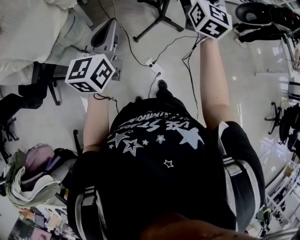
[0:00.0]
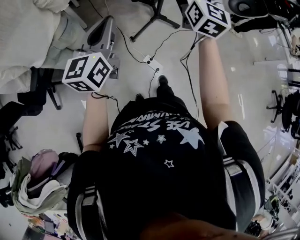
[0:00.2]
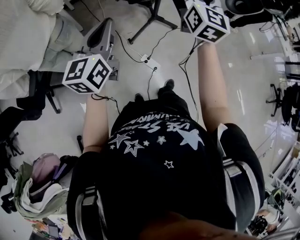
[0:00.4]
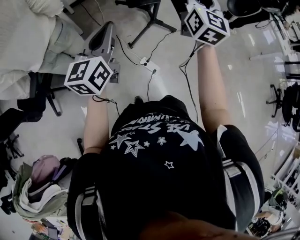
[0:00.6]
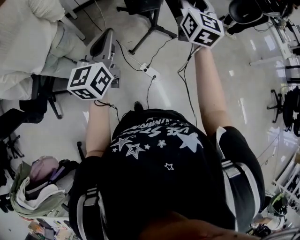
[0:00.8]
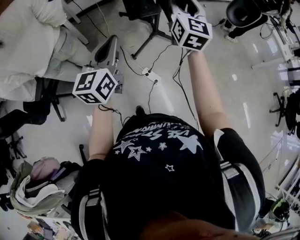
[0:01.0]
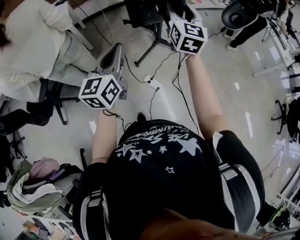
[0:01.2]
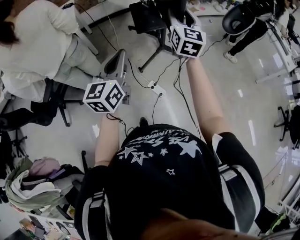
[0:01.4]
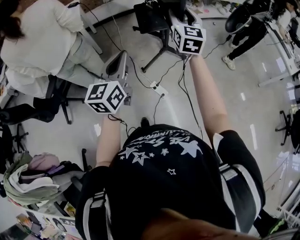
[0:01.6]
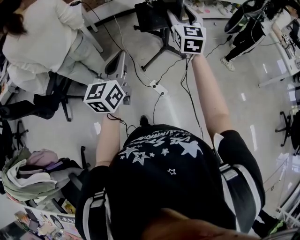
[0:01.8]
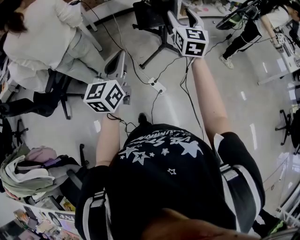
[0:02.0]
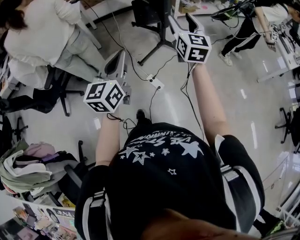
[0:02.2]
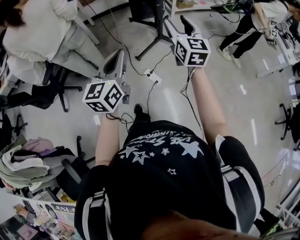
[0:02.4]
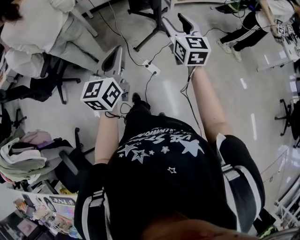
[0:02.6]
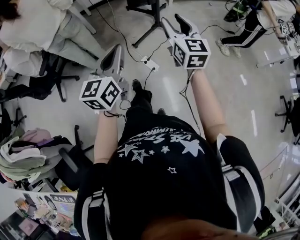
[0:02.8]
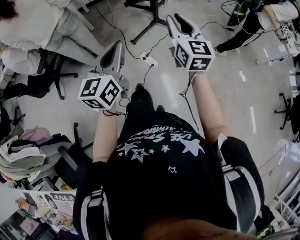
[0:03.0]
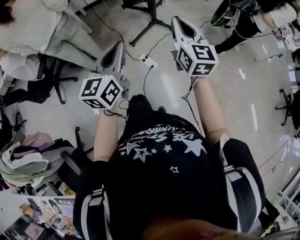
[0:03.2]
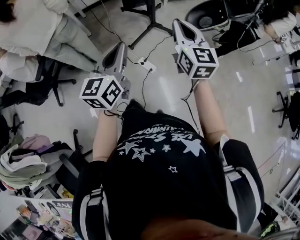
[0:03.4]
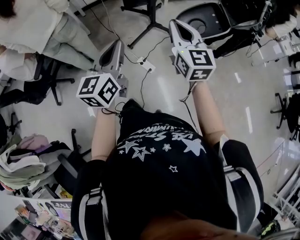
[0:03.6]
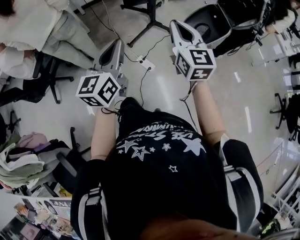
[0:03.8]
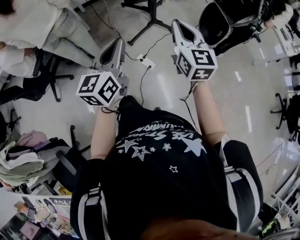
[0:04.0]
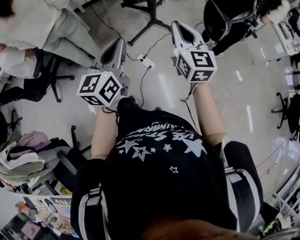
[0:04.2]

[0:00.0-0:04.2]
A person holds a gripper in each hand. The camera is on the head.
0:00.0 to 0:01.4: The left gripper shifts approximately 15 cm to the right and backward. The right gripper moves backward and to the right, about 10 cm.
0:01.4 to 0:02.8: The right gripper travels backward by some 20 cm, while the left gripper heads backward and to the right, covering about 20 cm.
0:02.8 to 0:04.2: The right gripper closes up.

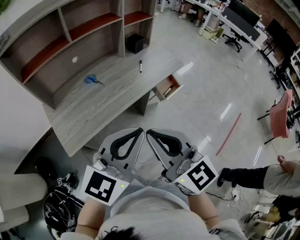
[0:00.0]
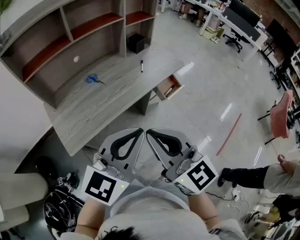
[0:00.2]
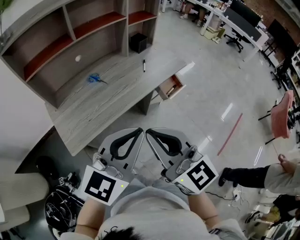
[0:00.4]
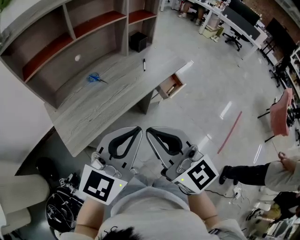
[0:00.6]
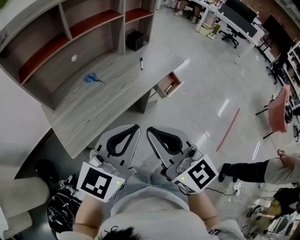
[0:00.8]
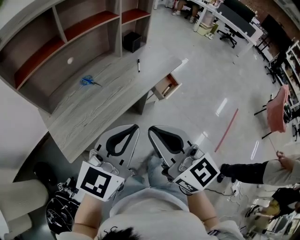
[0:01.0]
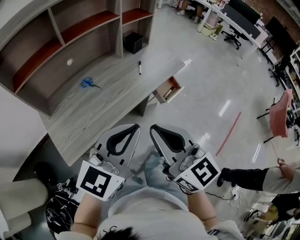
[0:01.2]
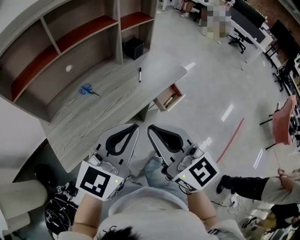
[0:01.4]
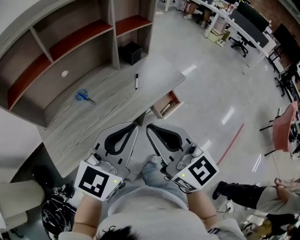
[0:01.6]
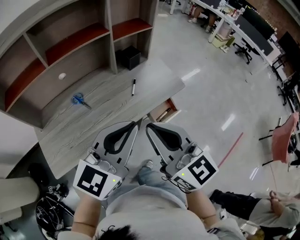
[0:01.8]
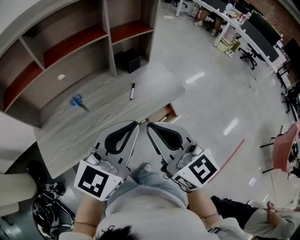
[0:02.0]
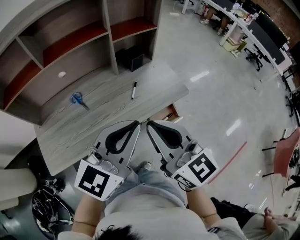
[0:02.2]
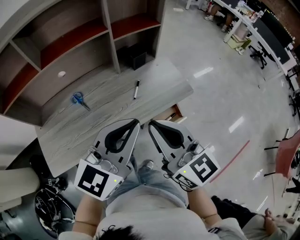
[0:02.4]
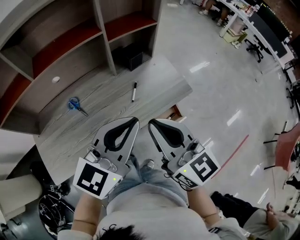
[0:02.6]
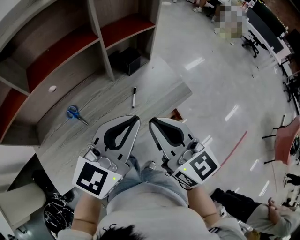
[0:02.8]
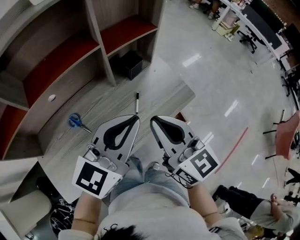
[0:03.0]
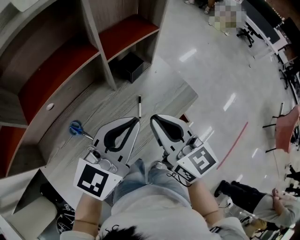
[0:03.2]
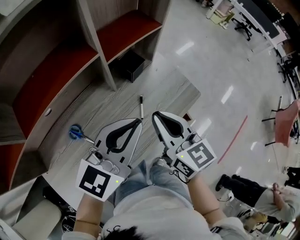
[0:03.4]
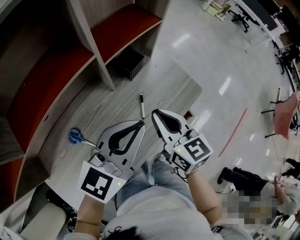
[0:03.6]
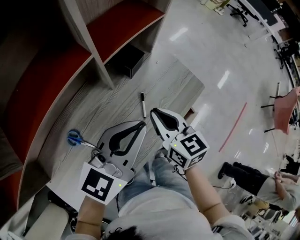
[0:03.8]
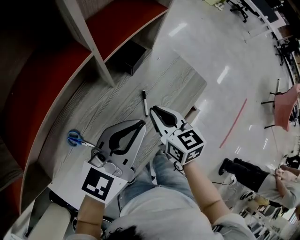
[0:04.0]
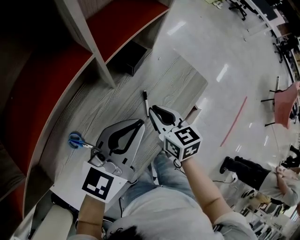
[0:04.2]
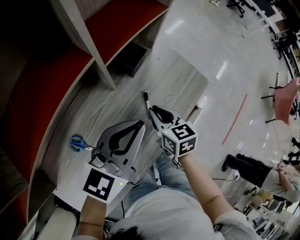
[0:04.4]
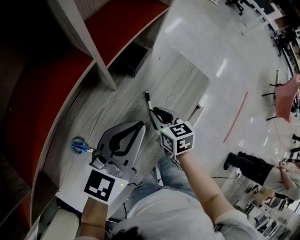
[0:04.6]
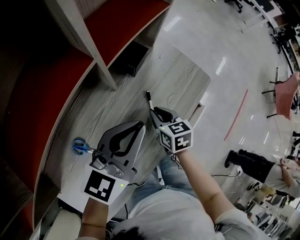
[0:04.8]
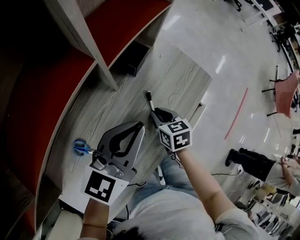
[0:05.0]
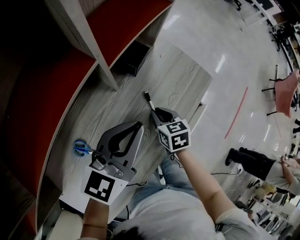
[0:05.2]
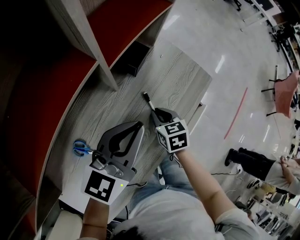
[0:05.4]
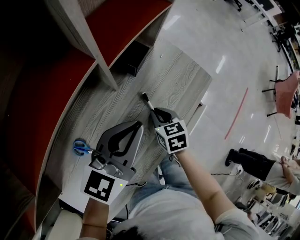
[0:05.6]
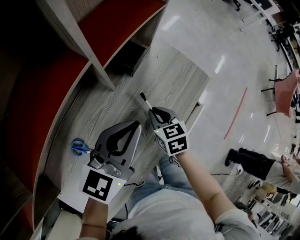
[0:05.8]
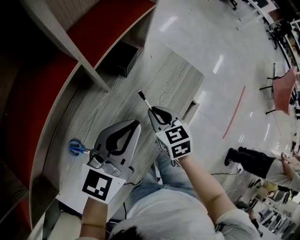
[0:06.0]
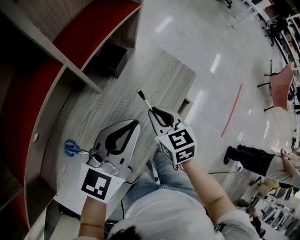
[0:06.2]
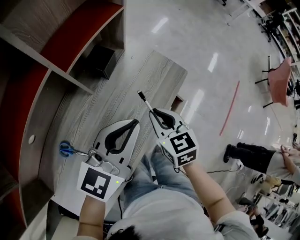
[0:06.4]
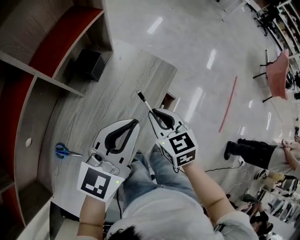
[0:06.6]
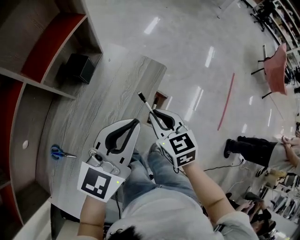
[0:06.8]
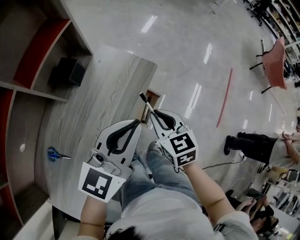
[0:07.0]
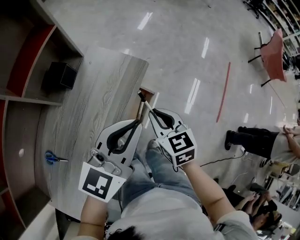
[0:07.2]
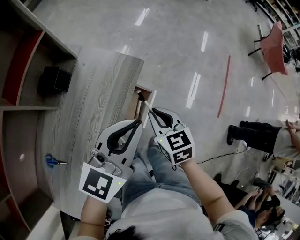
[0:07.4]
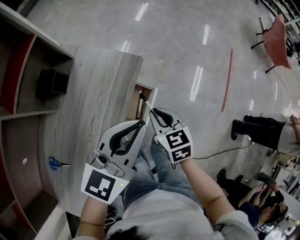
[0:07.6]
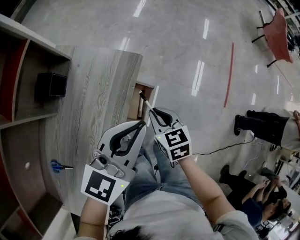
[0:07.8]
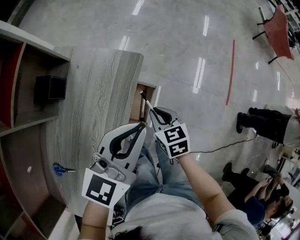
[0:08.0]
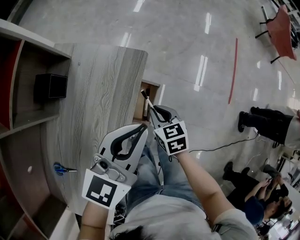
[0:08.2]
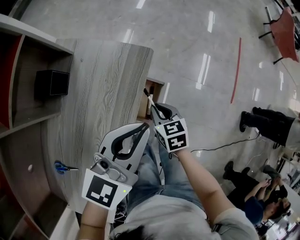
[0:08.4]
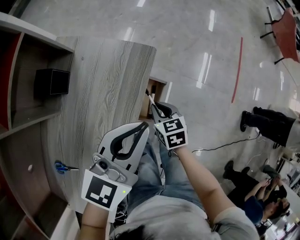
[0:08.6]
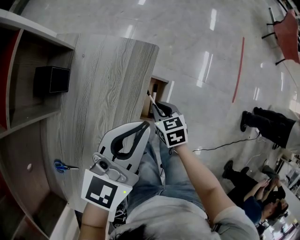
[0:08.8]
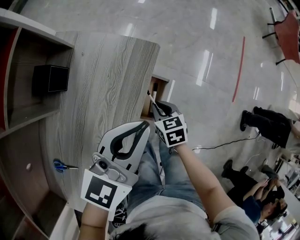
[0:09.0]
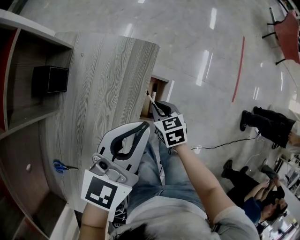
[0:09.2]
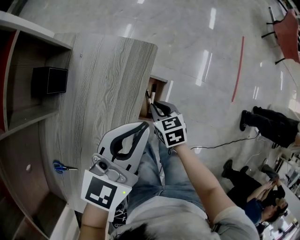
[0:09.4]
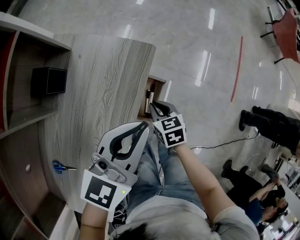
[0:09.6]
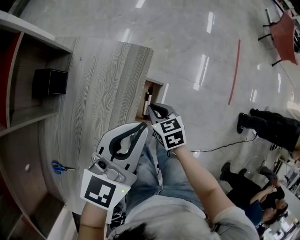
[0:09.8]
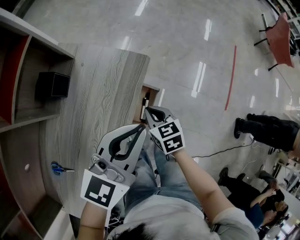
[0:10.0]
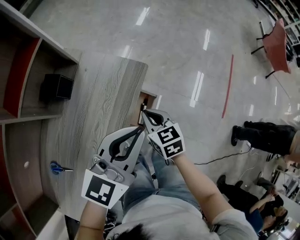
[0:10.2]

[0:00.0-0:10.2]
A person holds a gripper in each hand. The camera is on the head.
0:00.0 to 0:01.4: The two grippers go roughly 10 cm forward.
0:01.4 to 0:03.0: The two grippers go some 25 cm forward.
0:03.0 to 0:04.4: The right gripper is displaced downward and forward by some 25 cm, and tips its fingers downward by roughly 30 degrees; the left gripper heads downward, forward and to the left, covering roughly 15 cm.
0:05.8 to 0:07.2: Both grippers move to the right, some 25 cm.
0:07.2 to 0:08.8: The right gripper moves downward, some 20 cm, and rotates roughly 20 degrees. Meanwhile the left gripper heads downward, covering roughly 5 cm.
0:08.8 to 0:10.2: The left gripper moves about 5 cm. Meanwhile the right gripper is displaced upward by roughly 10 cm.

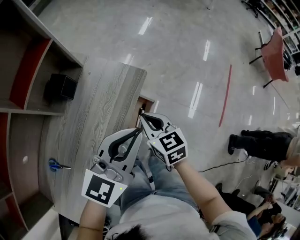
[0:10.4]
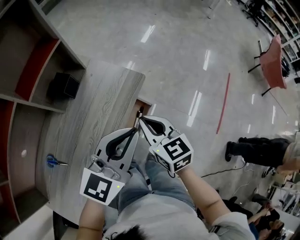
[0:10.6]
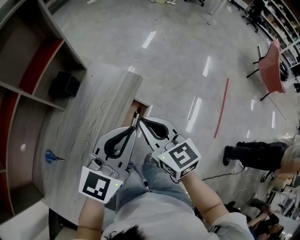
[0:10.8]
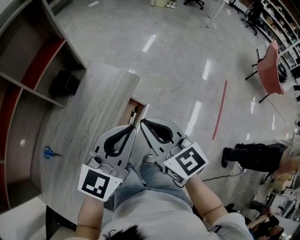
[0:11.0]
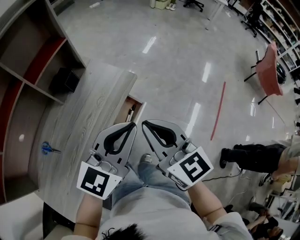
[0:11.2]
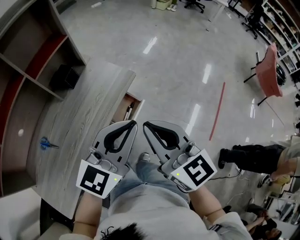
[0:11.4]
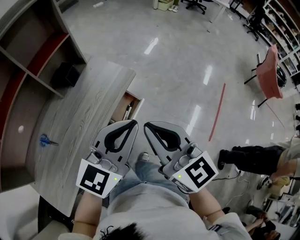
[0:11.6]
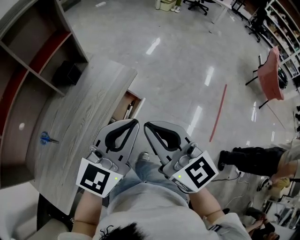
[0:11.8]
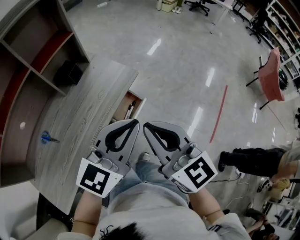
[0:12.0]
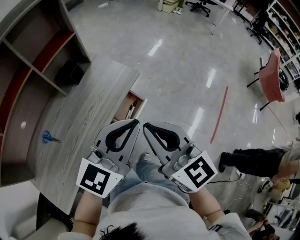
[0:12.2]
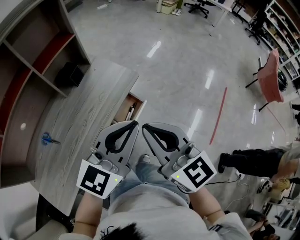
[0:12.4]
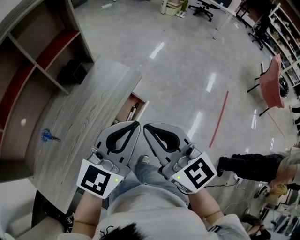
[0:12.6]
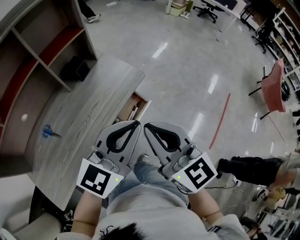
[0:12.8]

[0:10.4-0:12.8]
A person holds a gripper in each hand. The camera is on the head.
0:10.4 to 0:11.6: The left gripper travels backward, upward and to the right by some 15 cm. Meanwhile the right gripper goes about 25 cm upward and backward, and turns by about 30 degrees.
0:11.6 to 0:12.8: The grippers make only small movements.

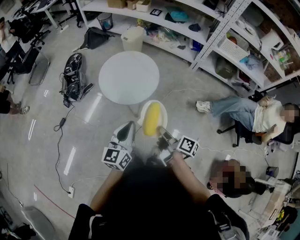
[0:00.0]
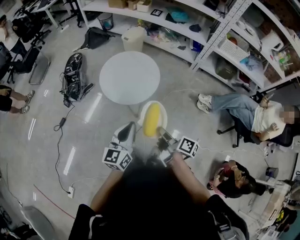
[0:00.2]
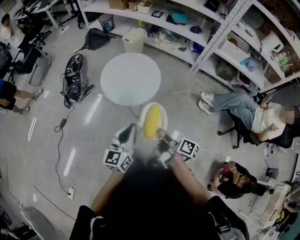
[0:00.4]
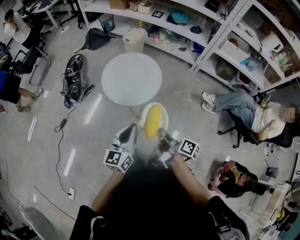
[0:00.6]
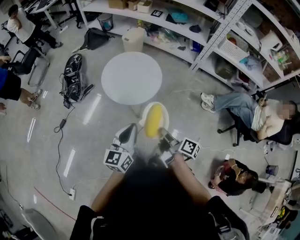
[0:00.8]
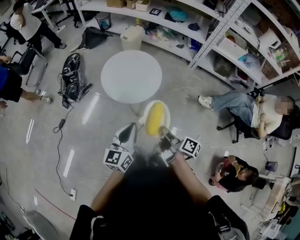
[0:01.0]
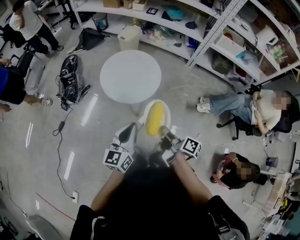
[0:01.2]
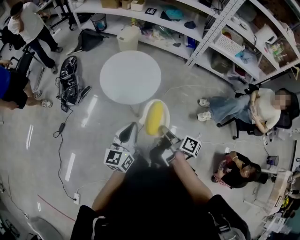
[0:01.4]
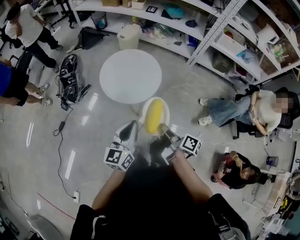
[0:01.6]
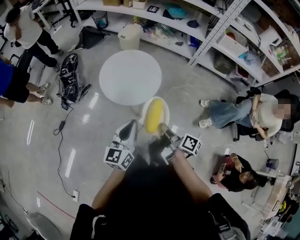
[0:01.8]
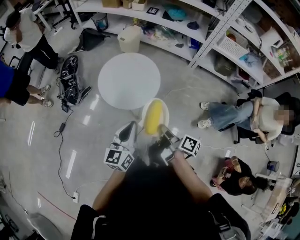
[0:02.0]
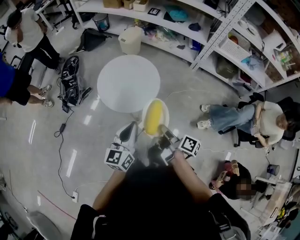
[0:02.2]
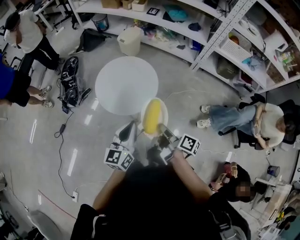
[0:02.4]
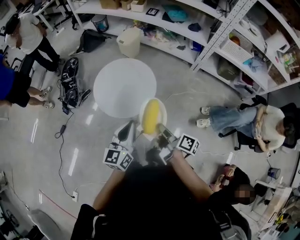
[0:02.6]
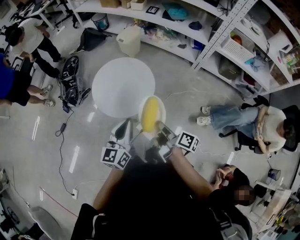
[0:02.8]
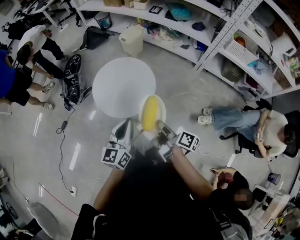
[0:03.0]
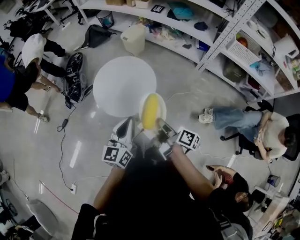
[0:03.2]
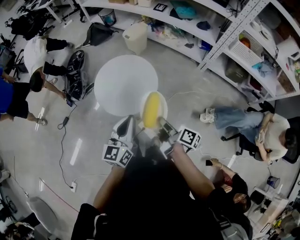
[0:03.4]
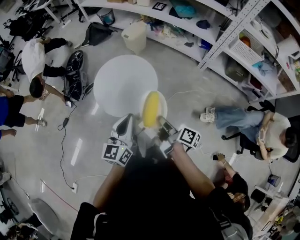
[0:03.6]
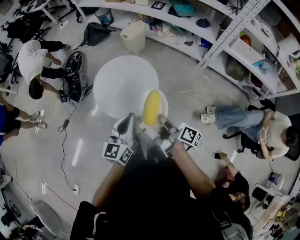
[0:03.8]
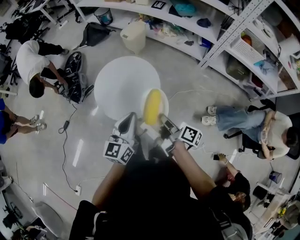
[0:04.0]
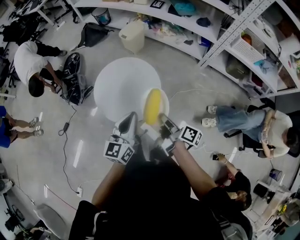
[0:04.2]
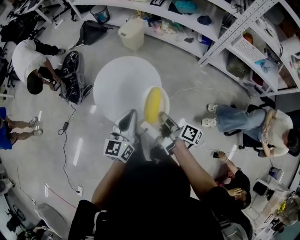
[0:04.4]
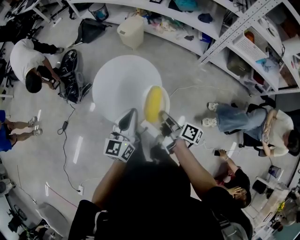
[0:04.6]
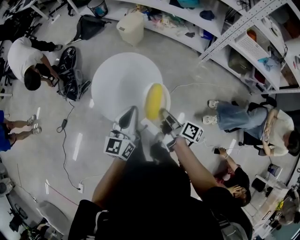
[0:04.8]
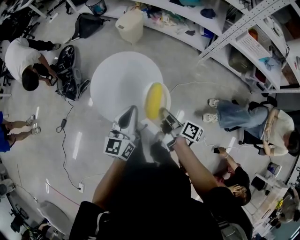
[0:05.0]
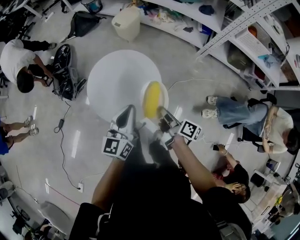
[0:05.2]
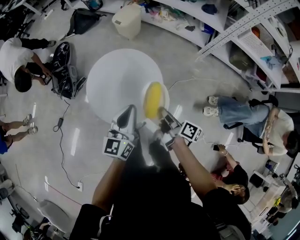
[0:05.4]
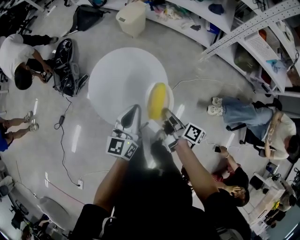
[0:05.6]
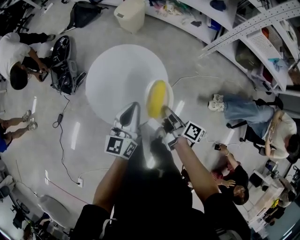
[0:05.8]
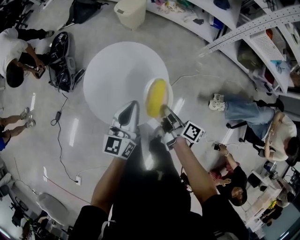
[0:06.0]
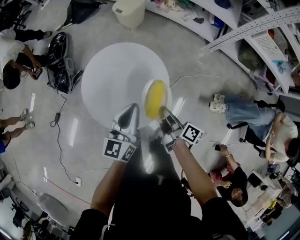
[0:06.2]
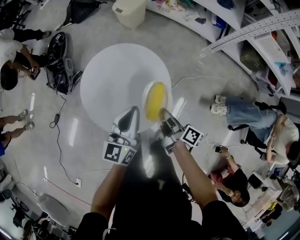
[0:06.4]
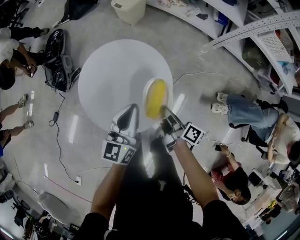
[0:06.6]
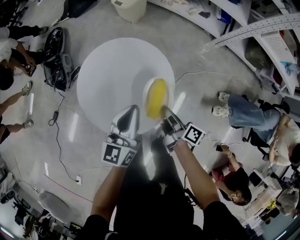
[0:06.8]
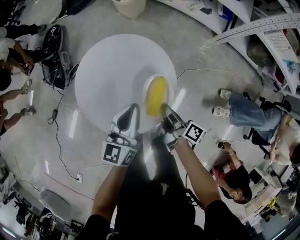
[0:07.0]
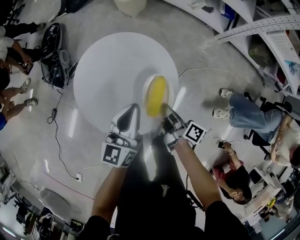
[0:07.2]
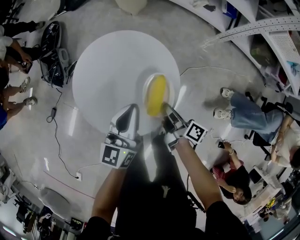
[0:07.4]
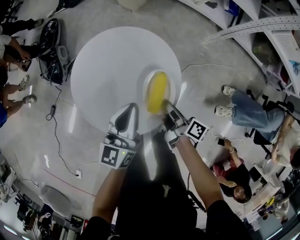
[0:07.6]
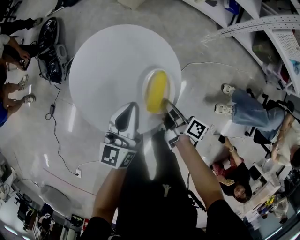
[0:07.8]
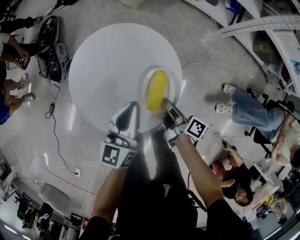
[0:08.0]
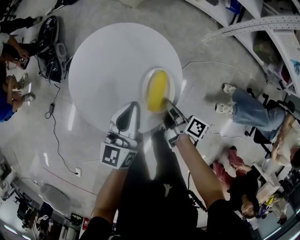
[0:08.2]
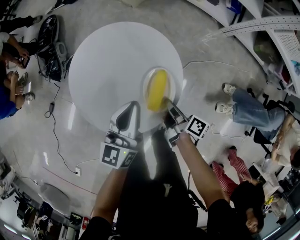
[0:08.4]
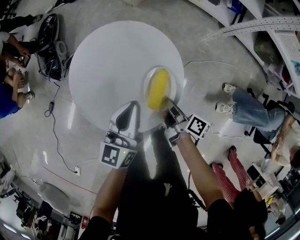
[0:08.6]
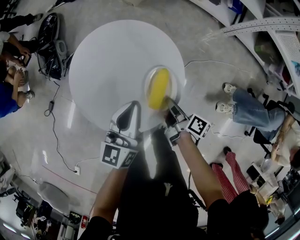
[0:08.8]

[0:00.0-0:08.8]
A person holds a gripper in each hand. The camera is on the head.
0:01.4 to 0:03.0: The left gripper ends up some 20 cm from where it was.
0:03.0 to 0:04.4: The left gripper changes place by about 10 cm.
0:04.4 to 0:05.8: The left gripper moves approximately 15 cm.
0:05.8 to 0:07.4: The left gripper goes about 10 cm downward.
